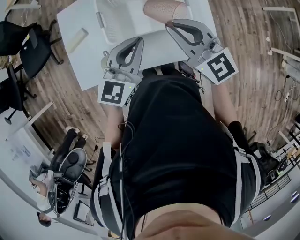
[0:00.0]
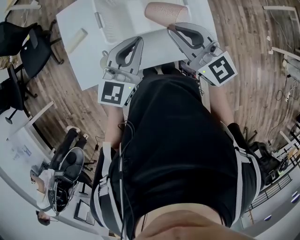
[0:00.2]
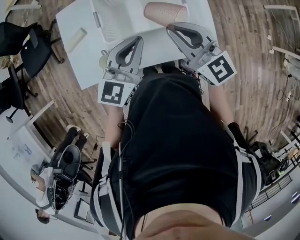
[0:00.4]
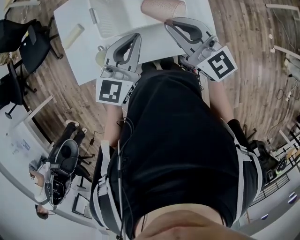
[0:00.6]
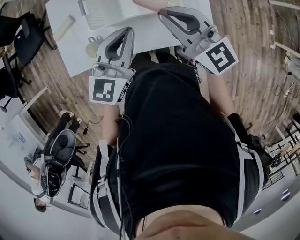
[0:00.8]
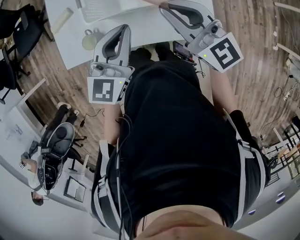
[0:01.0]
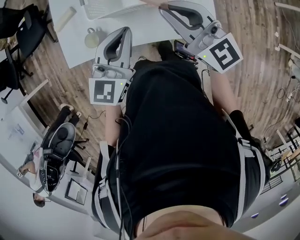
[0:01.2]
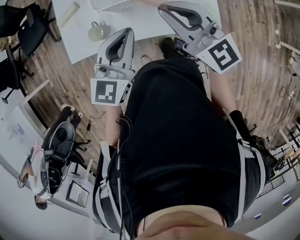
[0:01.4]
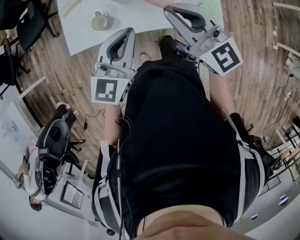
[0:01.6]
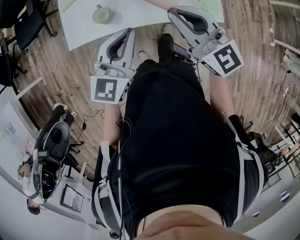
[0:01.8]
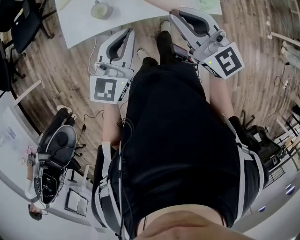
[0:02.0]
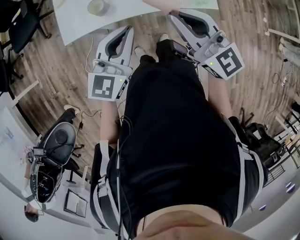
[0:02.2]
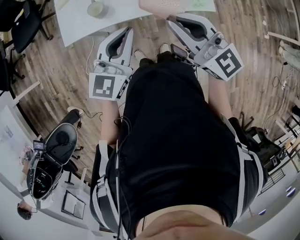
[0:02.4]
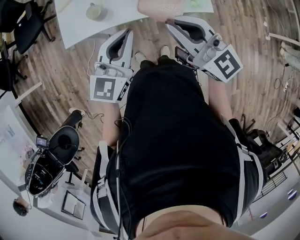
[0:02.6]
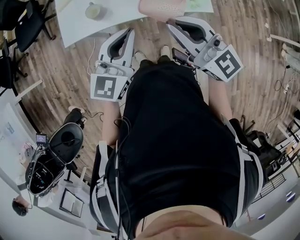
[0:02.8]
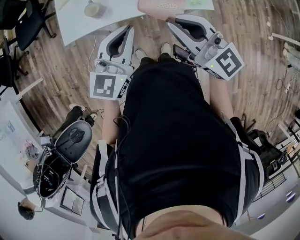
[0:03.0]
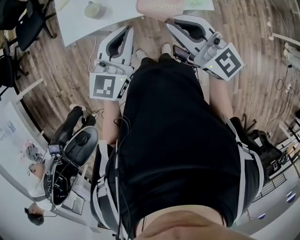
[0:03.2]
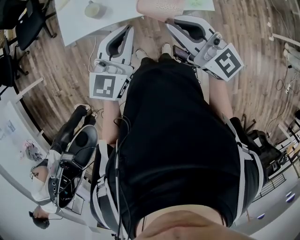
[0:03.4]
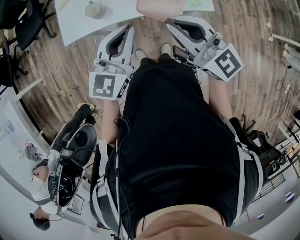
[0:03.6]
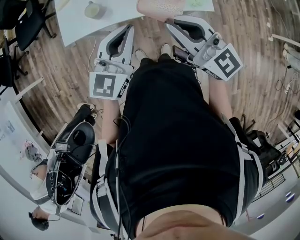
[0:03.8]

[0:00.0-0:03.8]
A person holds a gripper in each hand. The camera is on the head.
0:00.0 to 0:01.2: The left gripper moves backward, about 5 cm. The right gripper heads to the right and backward, covering some 10 cm.
0:01.2 to 0:02.6: Both grippers move backward, roughly 20 cm.
0:02.6 to 0:03.8: The grippers stay close to where they were, moving slightly.

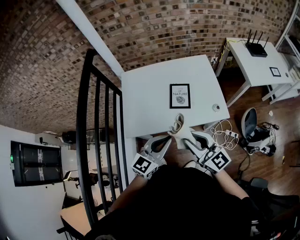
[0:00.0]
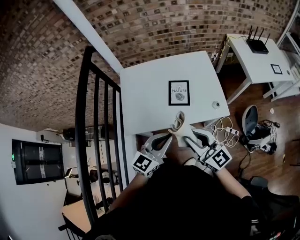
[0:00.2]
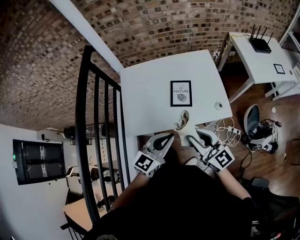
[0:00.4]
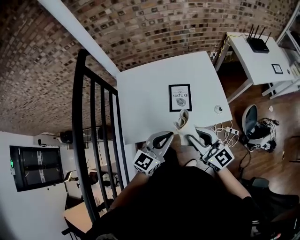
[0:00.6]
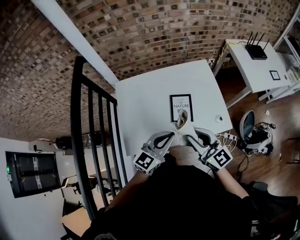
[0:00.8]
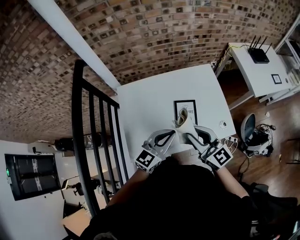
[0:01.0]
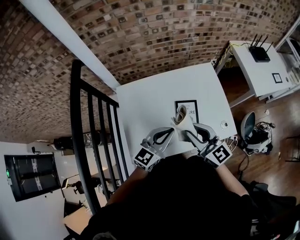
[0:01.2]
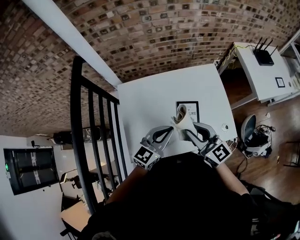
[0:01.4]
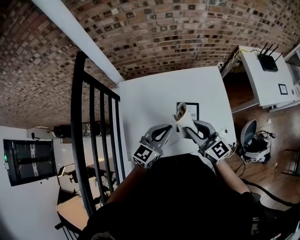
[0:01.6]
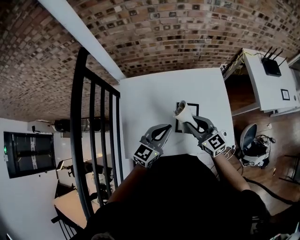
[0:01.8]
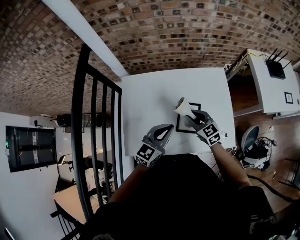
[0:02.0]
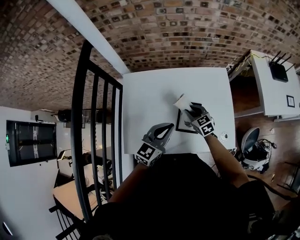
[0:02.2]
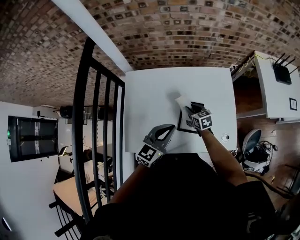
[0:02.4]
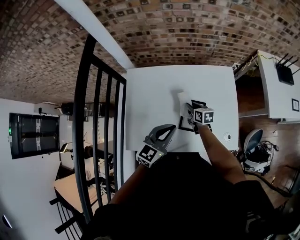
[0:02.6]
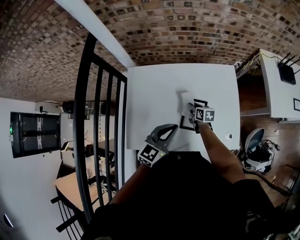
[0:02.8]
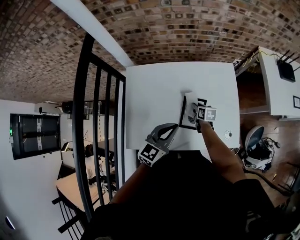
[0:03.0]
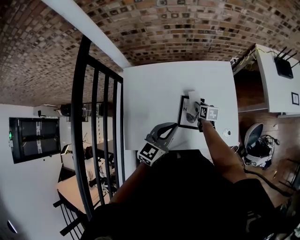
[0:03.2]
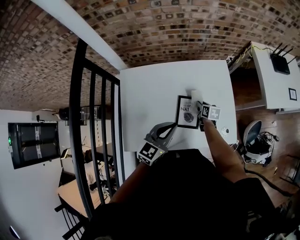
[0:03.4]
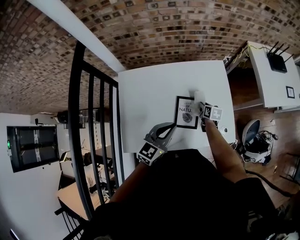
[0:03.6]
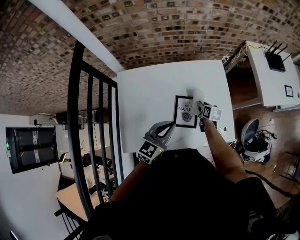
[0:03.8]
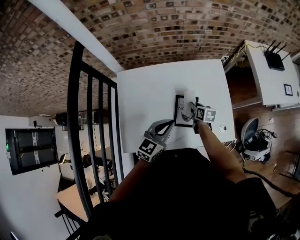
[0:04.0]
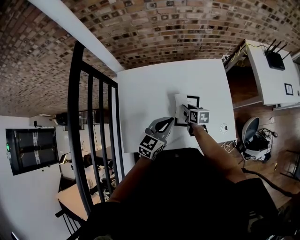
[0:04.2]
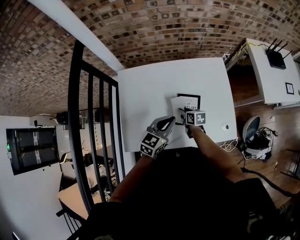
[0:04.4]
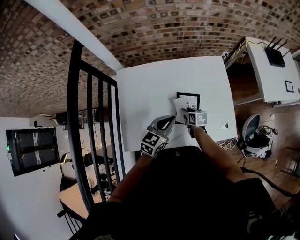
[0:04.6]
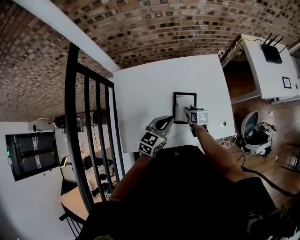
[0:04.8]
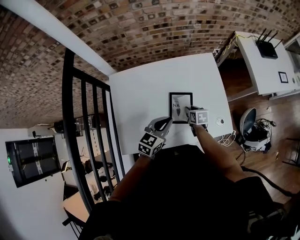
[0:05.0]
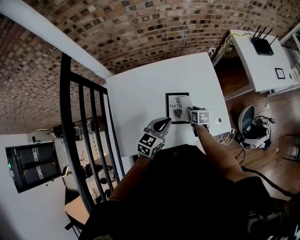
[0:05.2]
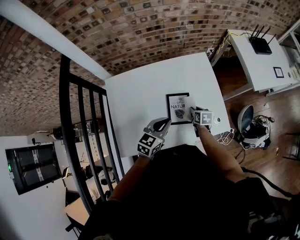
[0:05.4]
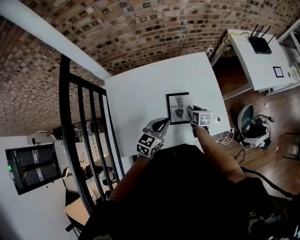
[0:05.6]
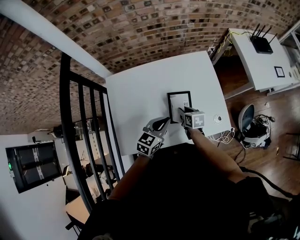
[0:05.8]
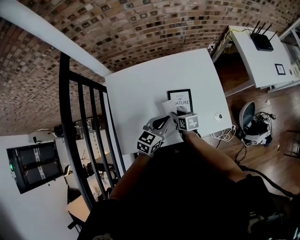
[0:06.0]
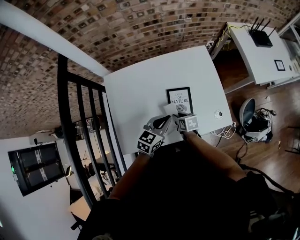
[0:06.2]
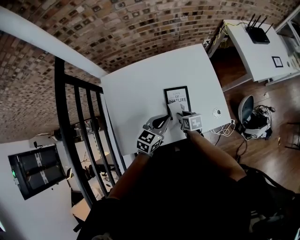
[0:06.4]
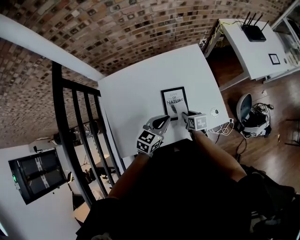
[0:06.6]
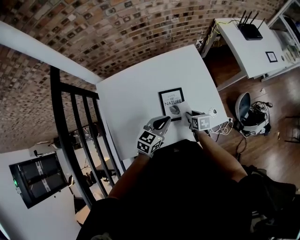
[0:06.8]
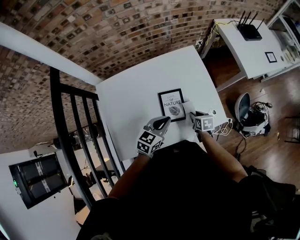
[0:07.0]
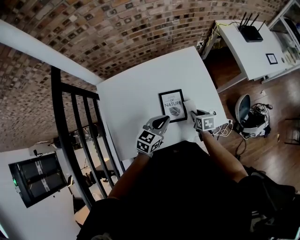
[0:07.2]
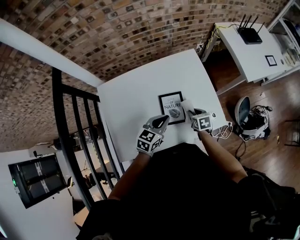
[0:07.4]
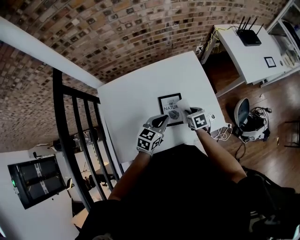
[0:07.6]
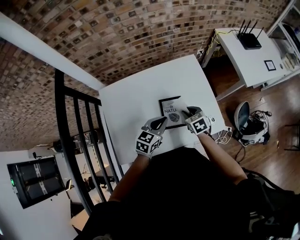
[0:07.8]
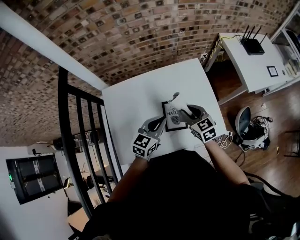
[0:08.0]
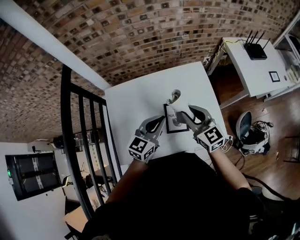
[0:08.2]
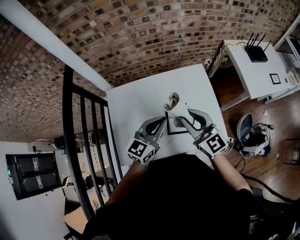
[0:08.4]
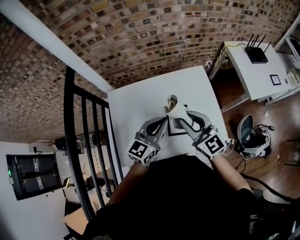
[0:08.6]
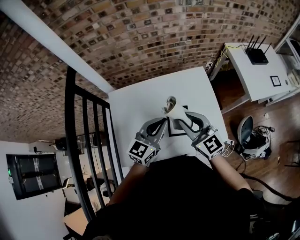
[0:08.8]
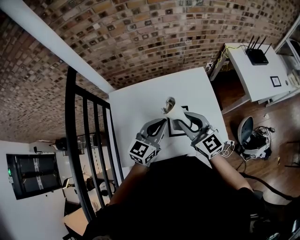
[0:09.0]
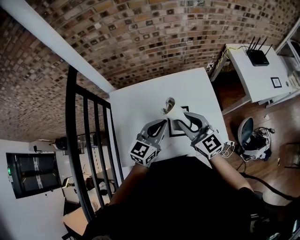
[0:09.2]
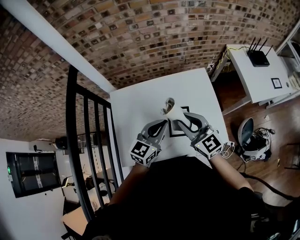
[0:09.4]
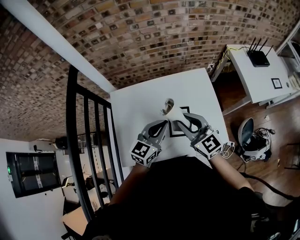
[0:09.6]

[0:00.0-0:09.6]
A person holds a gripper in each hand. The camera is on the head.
0:00.0 to 0:01.6: The two grippers go approximately 25 cm forward.
0:01.6 to 0:03.2: The right gripper shifts about 35 cm downward and forward, and angles its fingers downward, by approximately 40 degrees; the left gripper shifts by some 5 cm.
0:03.2 to 0:04.8: The right gripper goes left and right, about 15 cm each way, reversing 2 times. The left gripper changes place by approximately 5 cm.
0:04.8 to 0:06.4: The right gripper goes left and right, roughly 15 cm each way, reversing 2 times.
0:06.4 to 0:08.0: The left gripper travels upward by some 5 cm; the right gripper is displaced upward by some 20 cm, and swivels about 40 degrees.
0:08.0 to 0:09.6: The left gripper travels upward by approximately 5 cm; the right gripper goes roughly 15 cm upward and to the left, and swivels some 20 degrees.

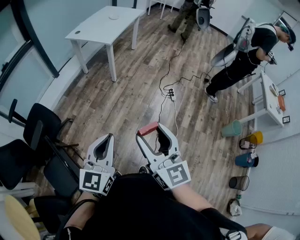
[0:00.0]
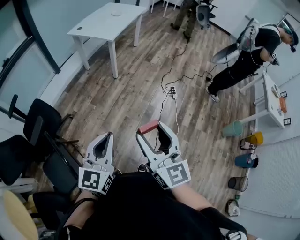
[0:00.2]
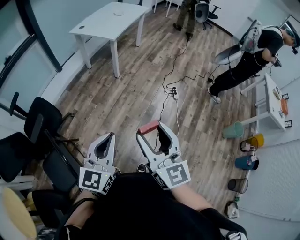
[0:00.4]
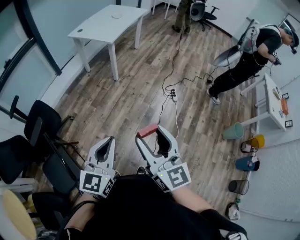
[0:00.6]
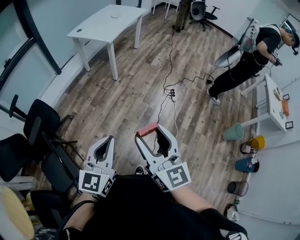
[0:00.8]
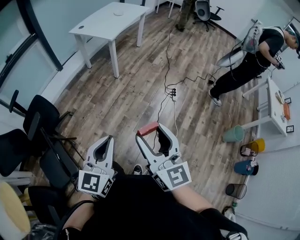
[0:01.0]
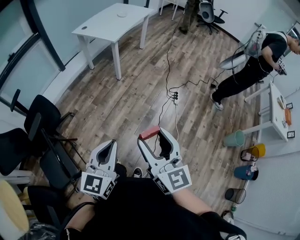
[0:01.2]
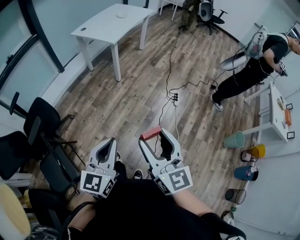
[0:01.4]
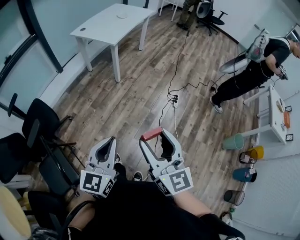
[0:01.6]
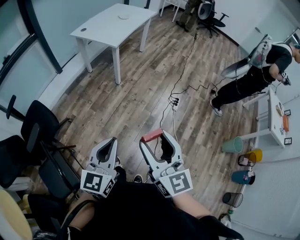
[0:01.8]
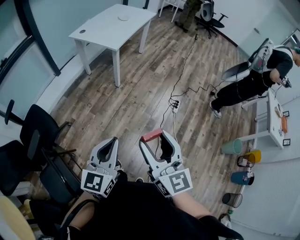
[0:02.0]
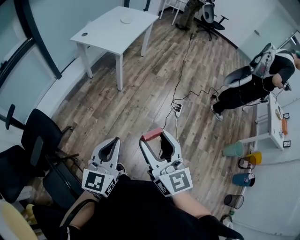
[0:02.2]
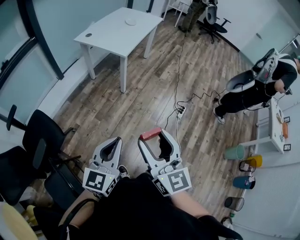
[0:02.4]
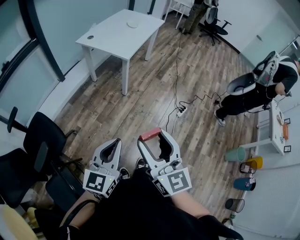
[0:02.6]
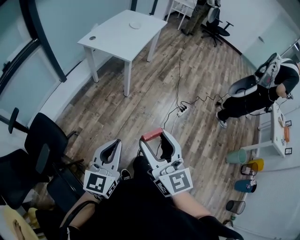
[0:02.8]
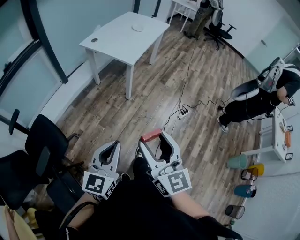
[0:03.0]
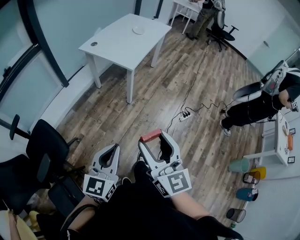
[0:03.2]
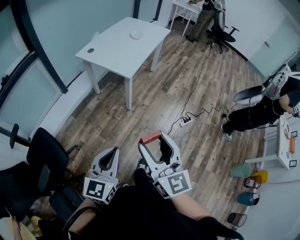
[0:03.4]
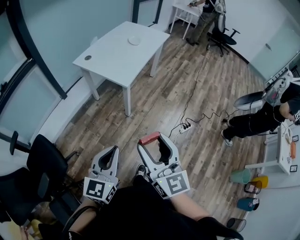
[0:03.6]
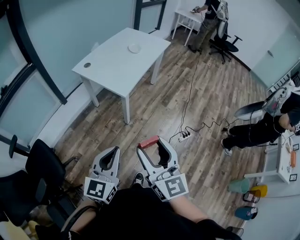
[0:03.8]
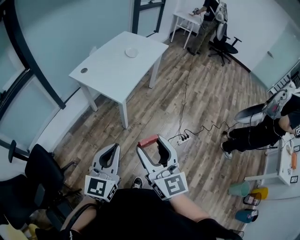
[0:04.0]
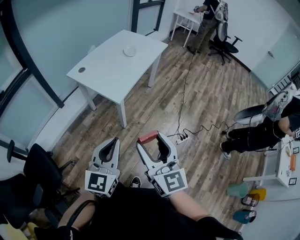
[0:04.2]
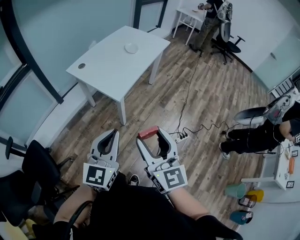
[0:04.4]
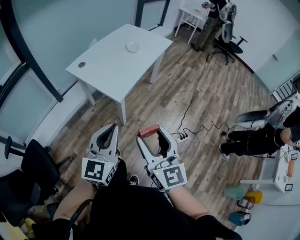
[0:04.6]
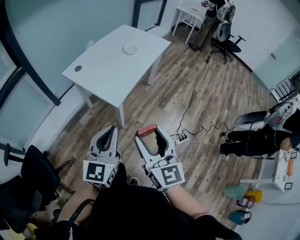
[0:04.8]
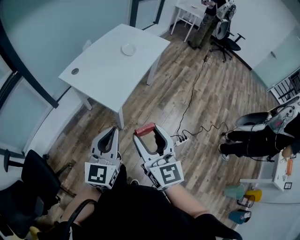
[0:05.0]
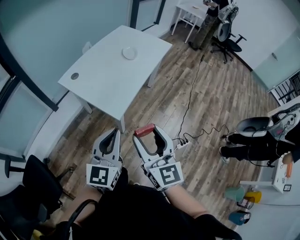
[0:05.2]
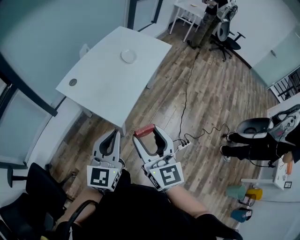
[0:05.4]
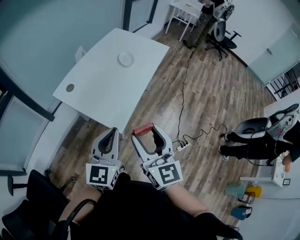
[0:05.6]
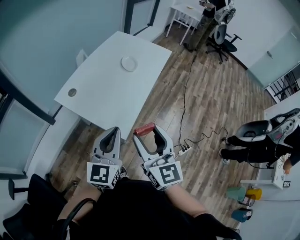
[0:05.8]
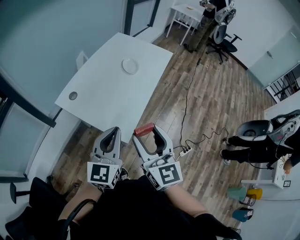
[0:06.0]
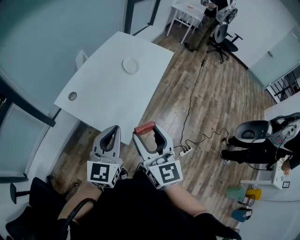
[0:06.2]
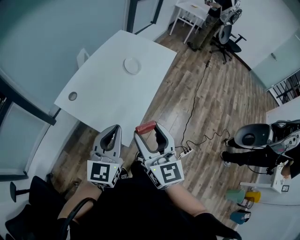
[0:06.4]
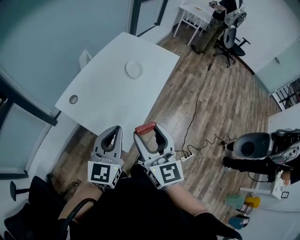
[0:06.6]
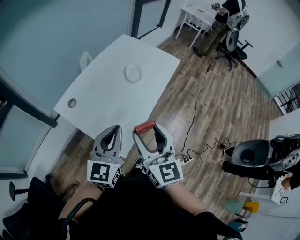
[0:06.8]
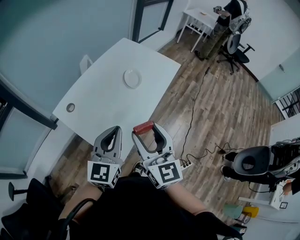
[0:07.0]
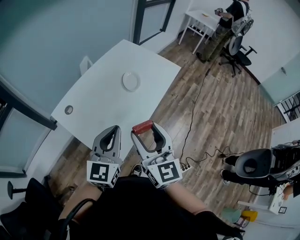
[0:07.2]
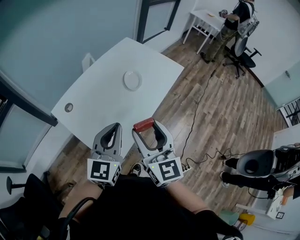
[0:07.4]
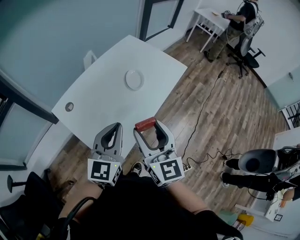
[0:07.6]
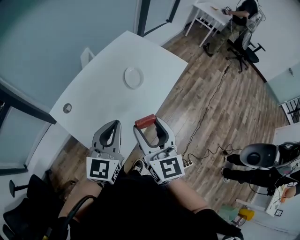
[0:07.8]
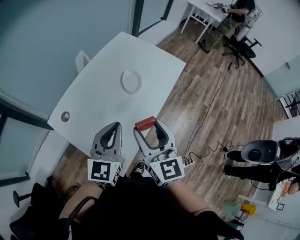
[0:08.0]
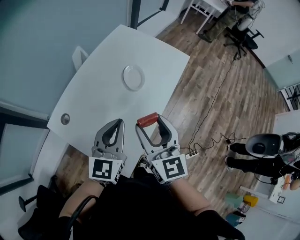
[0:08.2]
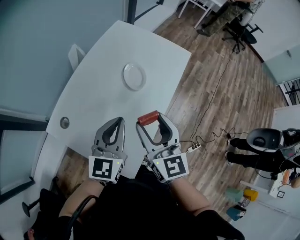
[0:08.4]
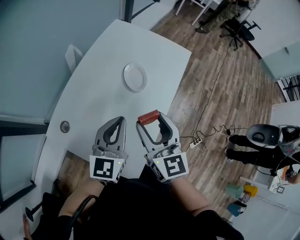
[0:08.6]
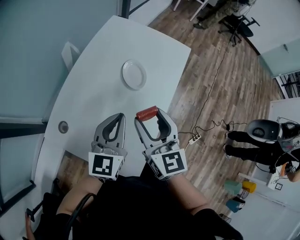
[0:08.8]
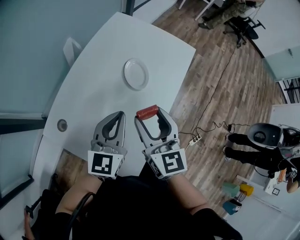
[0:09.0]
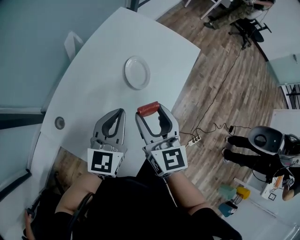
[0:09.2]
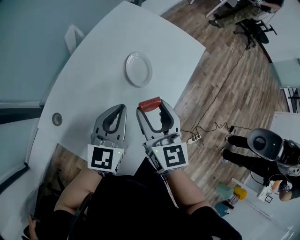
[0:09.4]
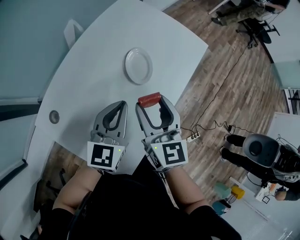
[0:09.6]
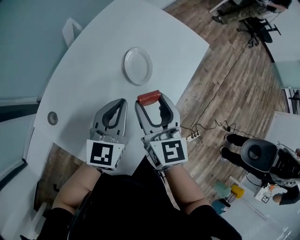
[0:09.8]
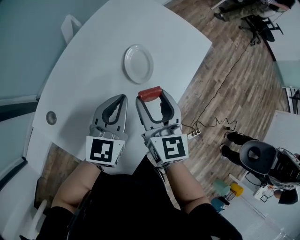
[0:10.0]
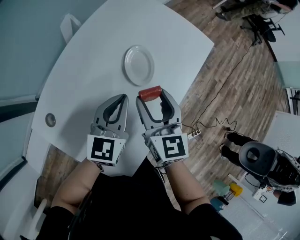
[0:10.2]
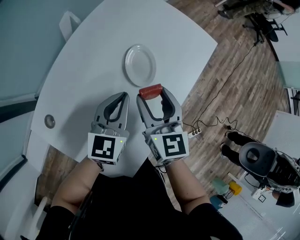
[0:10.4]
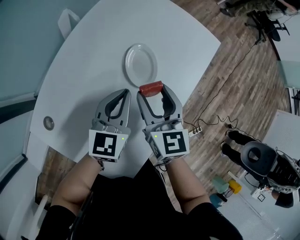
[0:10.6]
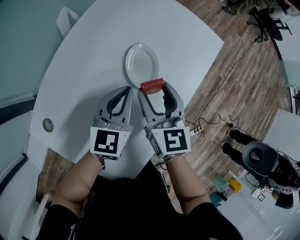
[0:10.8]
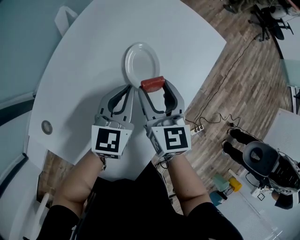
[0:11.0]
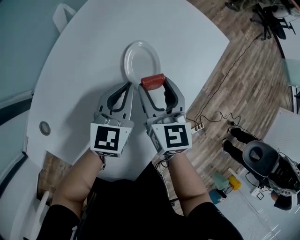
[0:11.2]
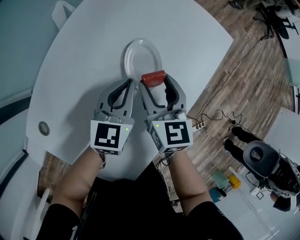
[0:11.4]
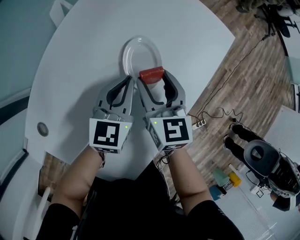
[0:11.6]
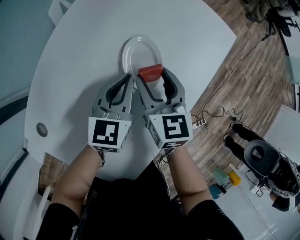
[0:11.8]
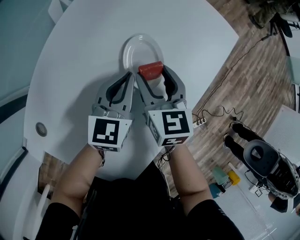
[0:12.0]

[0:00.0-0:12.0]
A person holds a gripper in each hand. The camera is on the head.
0:00.0 to 0:01.6: Both grippers travel together forward, about 5 cm.
0:01.6 to 0:03.0: Both grippers move forward and to the left, approximately 25 cm.
0:03.0 to 0:04.4: Both grippers move forward, roughly 30 cm.
0:04.4 to 0:06.0: Both grippers travel together forward, approximately 30 cm.
0:06.0 to 0:07.6: The left gripper goes some 15 cm forward and to the right. The right gripper moves forward, roughly 15 cm.
0:07.6 to 0:09.0: Both grippers move forward, some 15 cm.
0:09.0 to 0:10.4: The grippers both shift downward and forward by about 10 cm.
0:10.4 to 0:12.0: The two grippers go about 10 cm downward and forward.
